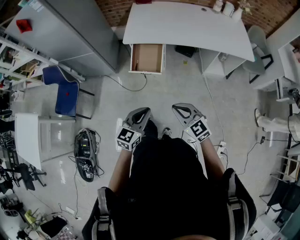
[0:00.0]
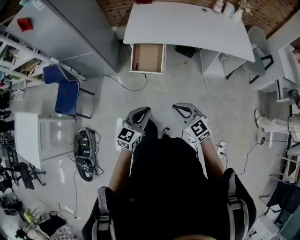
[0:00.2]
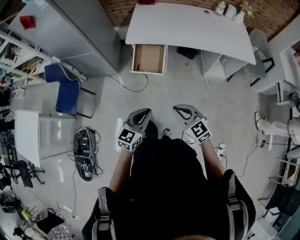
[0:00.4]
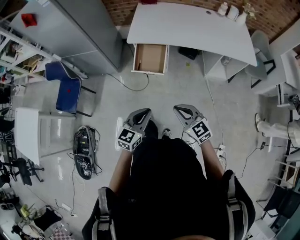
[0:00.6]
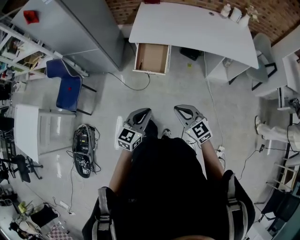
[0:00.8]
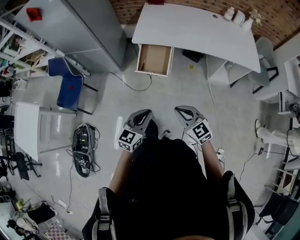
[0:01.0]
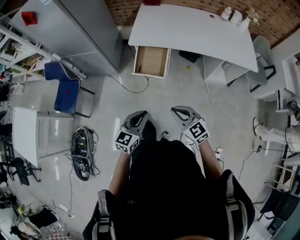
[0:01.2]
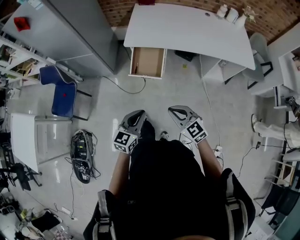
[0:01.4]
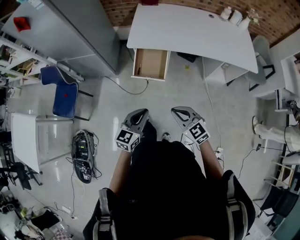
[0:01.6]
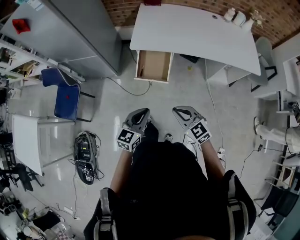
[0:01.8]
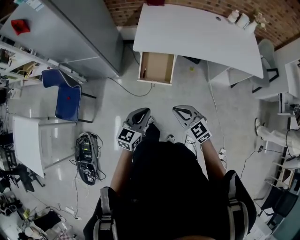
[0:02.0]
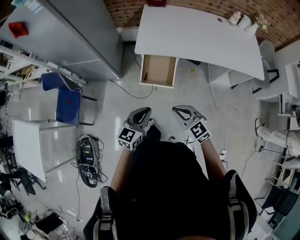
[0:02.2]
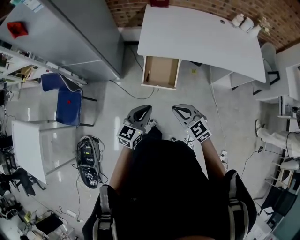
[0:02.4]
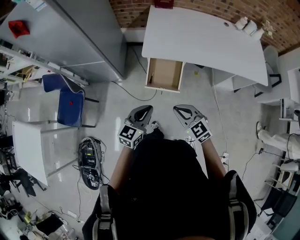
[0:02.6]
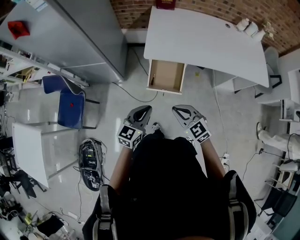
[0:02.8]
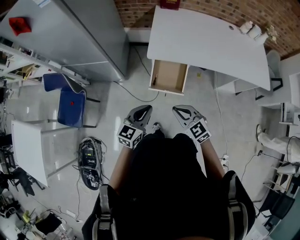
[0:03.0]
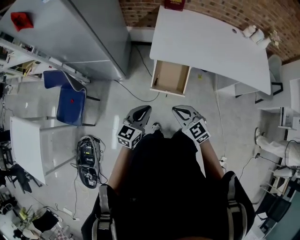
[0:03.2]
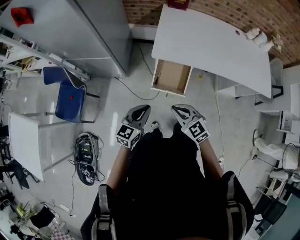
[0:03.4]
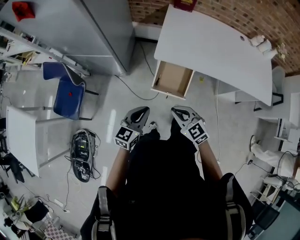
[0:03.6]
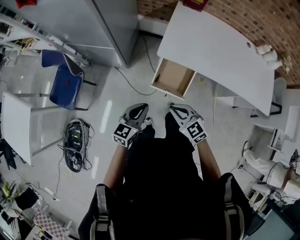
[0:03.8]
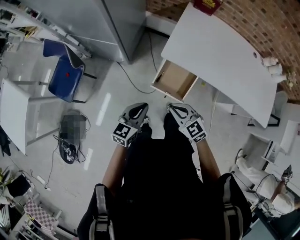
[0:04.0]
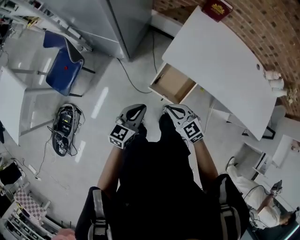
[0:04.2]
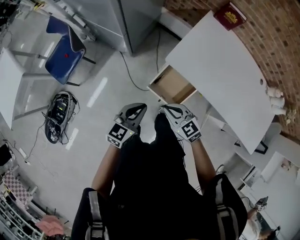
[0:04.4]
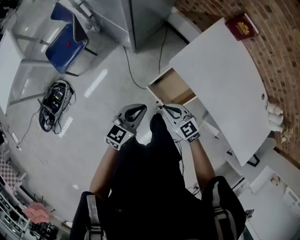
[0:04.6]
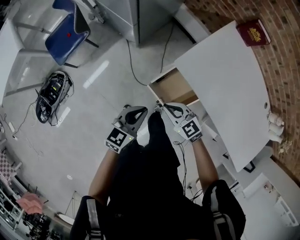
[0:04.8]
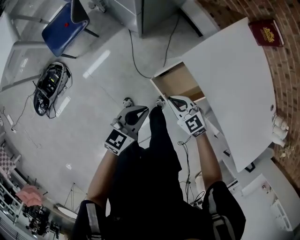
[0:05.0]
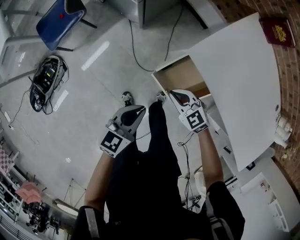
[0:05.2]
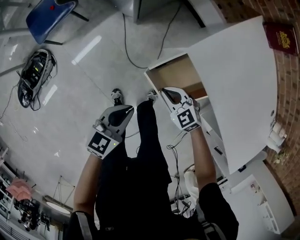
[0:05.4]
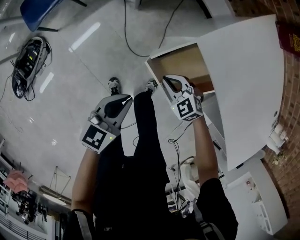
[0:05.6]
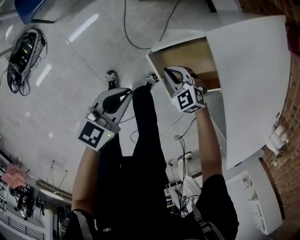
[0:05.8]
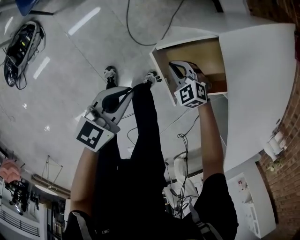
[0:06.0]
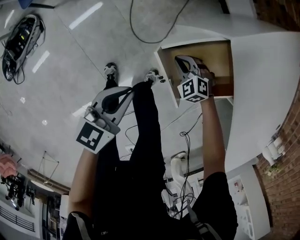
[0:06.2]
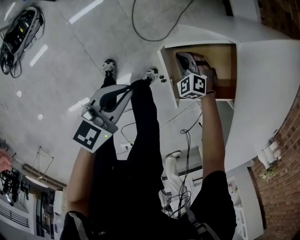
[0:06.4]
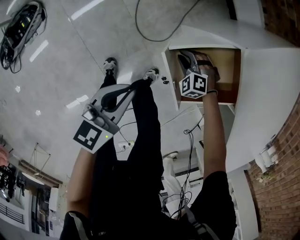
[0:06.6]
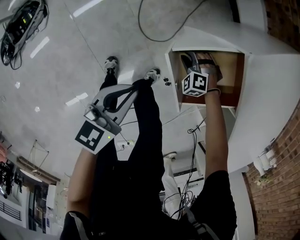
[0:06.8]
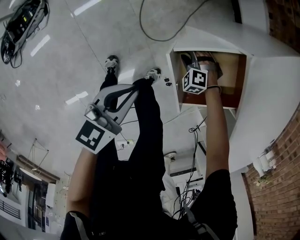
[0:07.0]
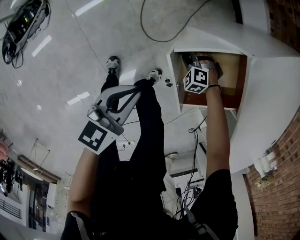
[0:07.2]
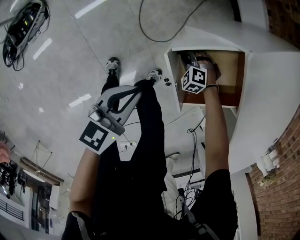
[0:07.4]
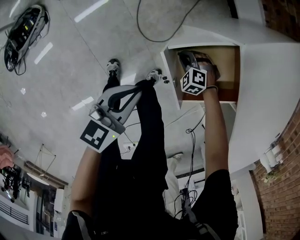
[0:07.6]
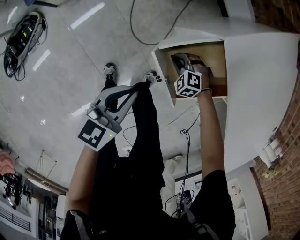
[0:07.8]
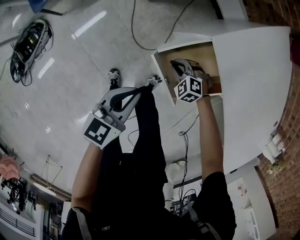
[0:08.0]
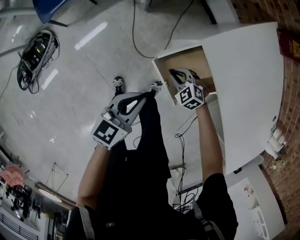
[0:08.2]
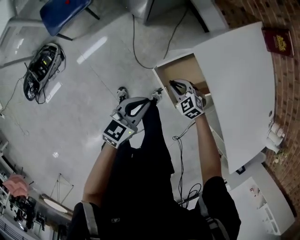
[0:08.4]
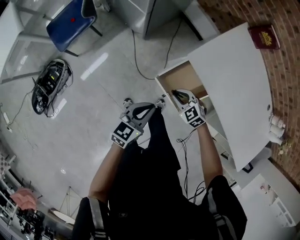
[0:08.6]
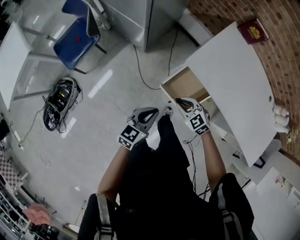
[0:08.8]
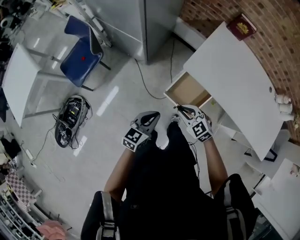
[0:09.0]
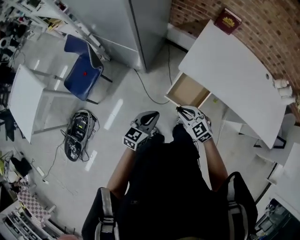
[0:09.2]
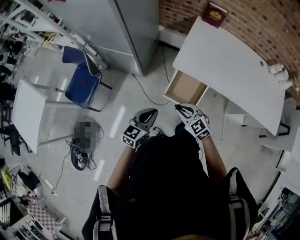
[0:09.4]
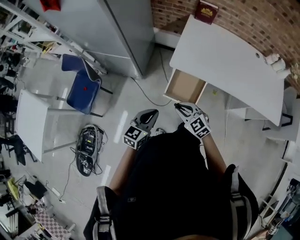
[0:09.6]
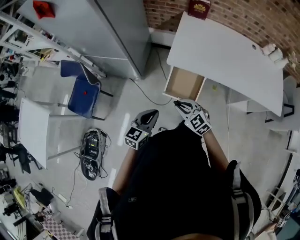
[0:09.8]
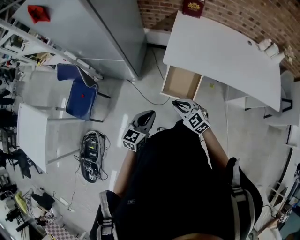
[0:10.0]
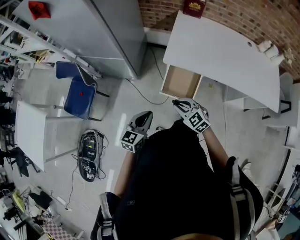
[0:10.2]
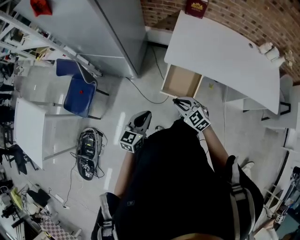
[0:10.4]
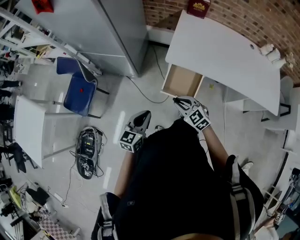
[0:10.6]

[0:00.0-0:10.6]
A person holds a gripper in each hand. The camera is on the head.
0:00.0 to 0:01.6: Both grippers move forward, roughly 5 cm.
0:01.6 to 0:03.0: Both grippers move forward and to the left, approximately 20 cm.
0:03.0 to 0:04.6: The left gripper changes place by roughly 10 cm, and turns by approximately 30 degrees; the right gripper changes place by about 20 cm, and swivels some 40 degrees.
0:04.6 to 0:06.0: The right gripper is displaced downward by approximately 35 cm, and changes its angle by roughly 40 degrees, while the left gripper heads downward, covering some 20 cm, and turns by about 20 degrees.
0:06.0 to 0:07.6: The right gripper travels downward by some 10 cm, and changes its angle by some 30 degrees.
0:07.6 to 0:09.0: The left gripper moves upward, roughly 20 cm, and turns by some 30 degrees, while the right gripper is displaced upward by some 40 cm, and rotates around the line of its fingers by some 50 degrees, clockwise from behind.
0:09.0 to 0:10.6: The left gripper moves approximately 5 cm, while the right gripper ends up some 5 cm from where it was.

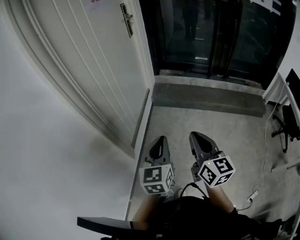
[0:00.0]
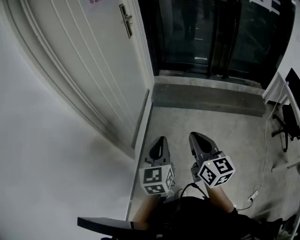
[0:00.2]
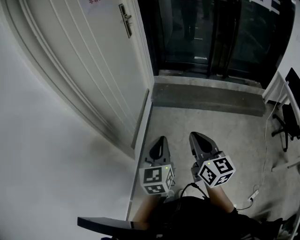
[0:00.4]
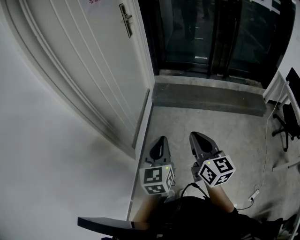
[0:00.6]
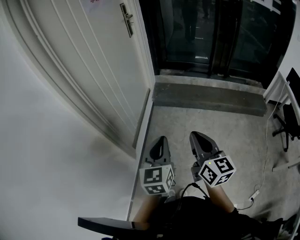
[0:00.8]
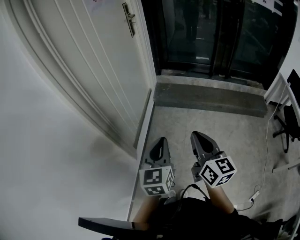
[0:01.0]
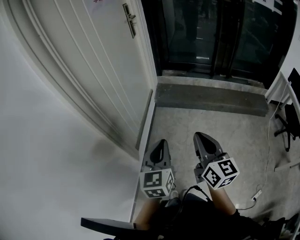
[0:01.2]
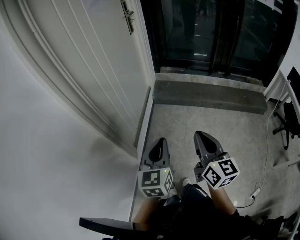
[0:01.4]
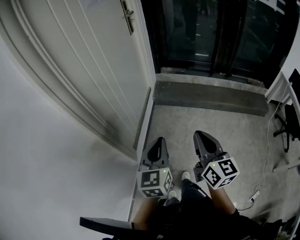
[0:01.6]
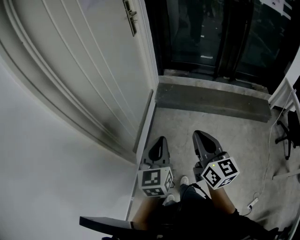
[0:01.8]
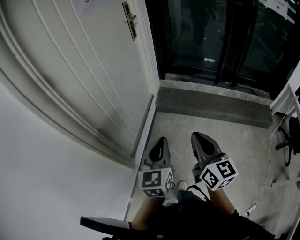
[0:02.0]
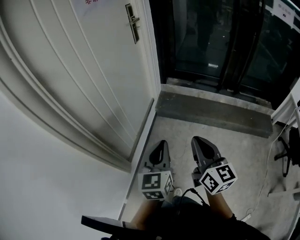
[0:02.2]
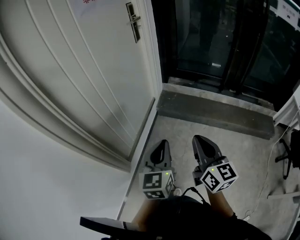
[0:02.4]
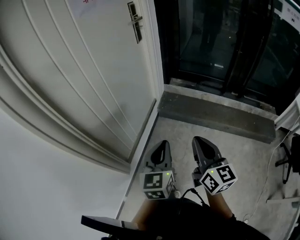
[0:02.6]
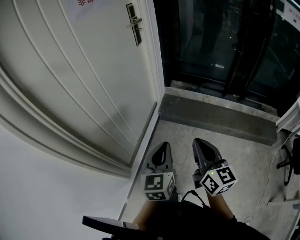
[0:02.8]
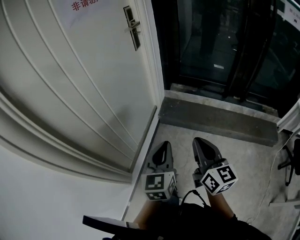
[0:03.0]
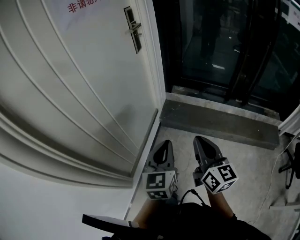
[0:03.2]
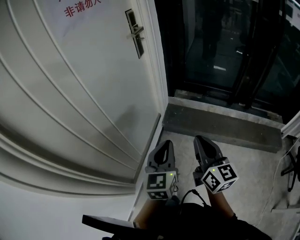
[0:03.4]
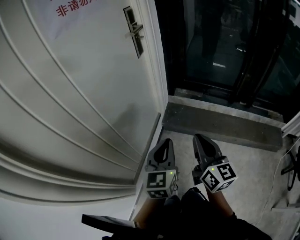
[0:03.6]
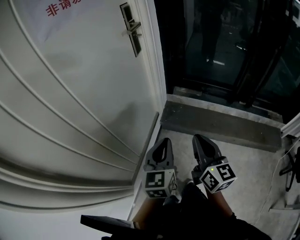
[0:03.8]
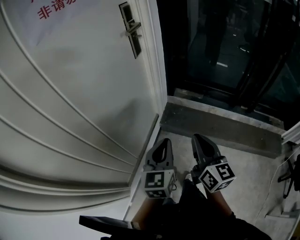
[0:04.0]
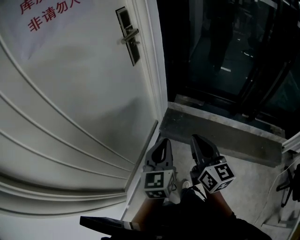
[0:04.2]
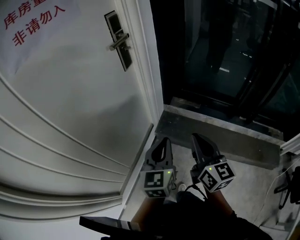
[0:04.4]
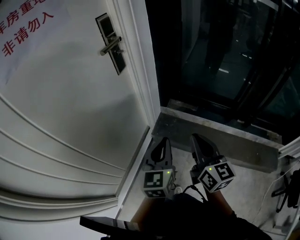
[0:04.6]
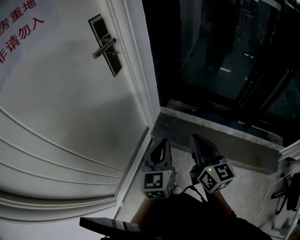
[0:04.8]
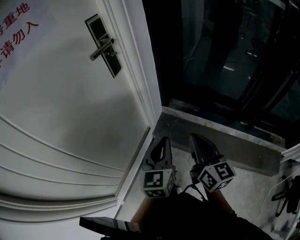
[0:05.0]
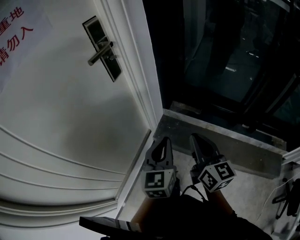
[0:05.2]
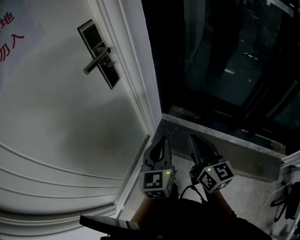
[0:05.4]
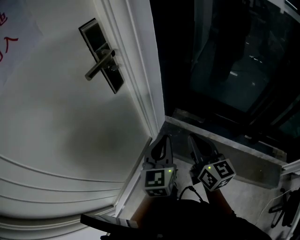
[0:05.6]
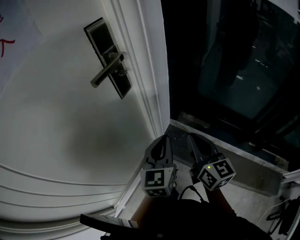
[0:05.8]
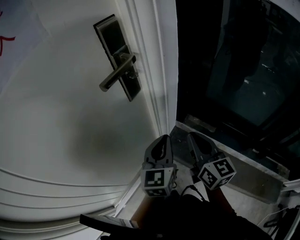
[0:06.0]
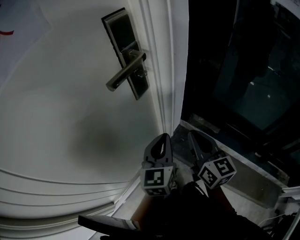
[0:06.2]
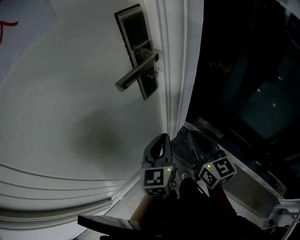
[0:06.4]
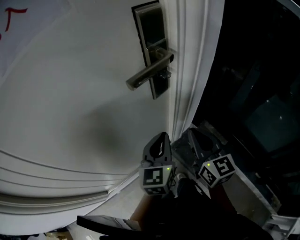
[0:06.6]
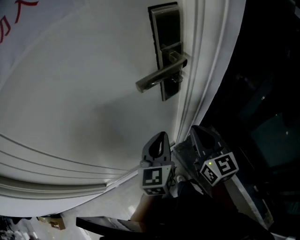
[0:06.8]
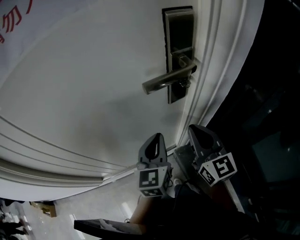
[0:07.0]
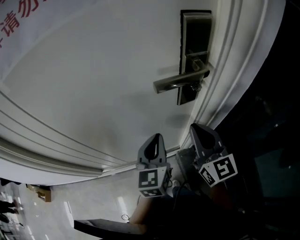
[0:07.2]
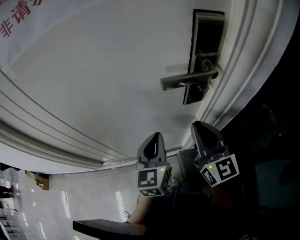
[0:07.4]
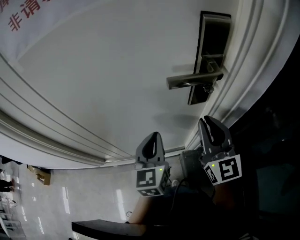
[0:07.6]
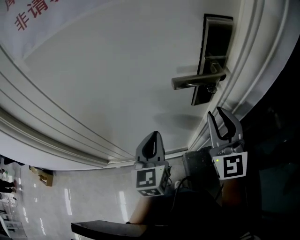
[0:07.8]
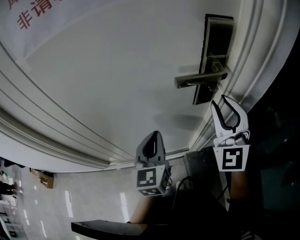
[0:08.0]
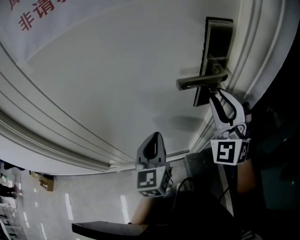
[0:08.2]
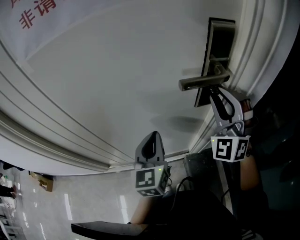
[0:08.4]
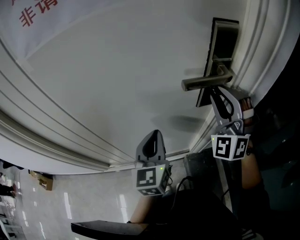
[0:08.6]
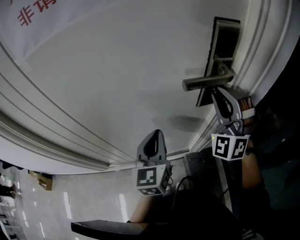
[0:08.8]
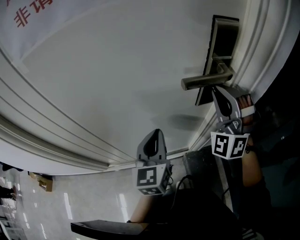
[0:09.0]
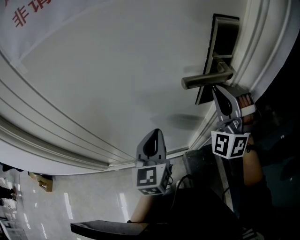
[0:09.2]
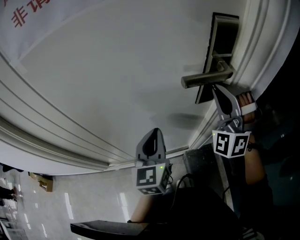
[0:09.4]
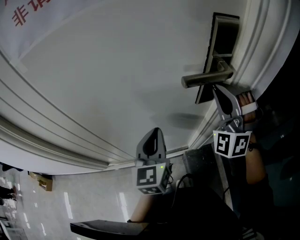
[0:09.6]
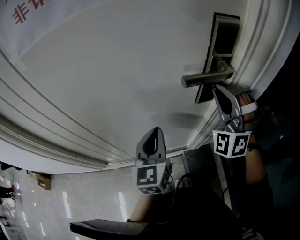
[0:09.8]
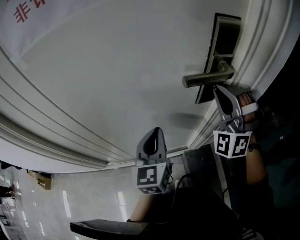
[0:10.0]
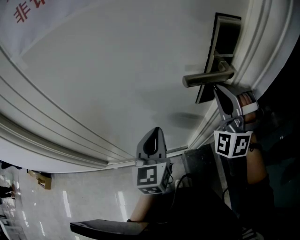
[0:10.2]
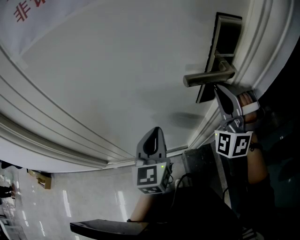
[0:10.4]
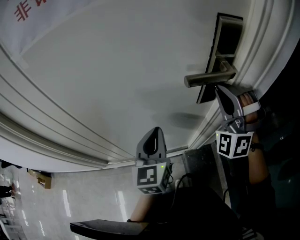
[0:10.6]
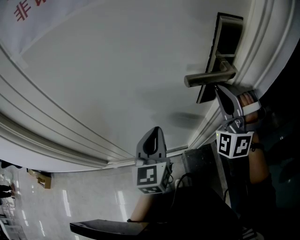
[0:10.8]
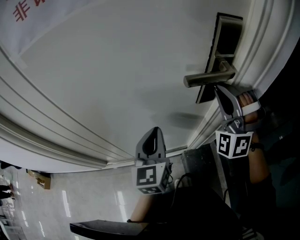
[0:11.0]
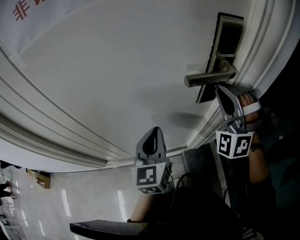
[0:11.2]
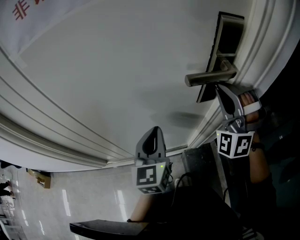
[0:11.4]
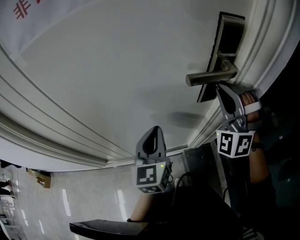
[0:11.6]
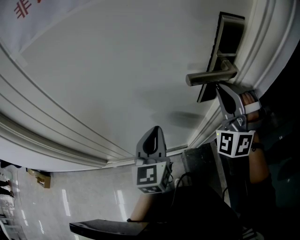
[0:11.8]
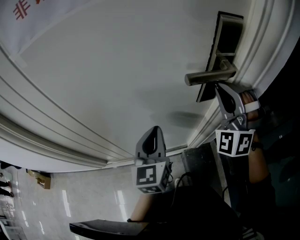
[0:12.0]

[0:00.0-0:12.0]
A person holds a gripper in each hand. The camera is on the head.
0:00.0 to 0:01.6: The grippers move only a little.
0:01.6 to 0:03.0: The left gripper goes about 25 cm forward and to the right, while the right gripper is displaced forward by about 25 cm.
0:03.0 to 0:04.4: The grippers both shift forward by roughly 30 cm.
0:04.4 to 0:06.0: Both grippers travel together forward, about 30 cm.
0:06.0 to 0:07.6: The right gripper changes place by about 20 cm, and changes its angle by some 50 degrees, while the left gripper shifts by about 15 cm, and changes its angle by about 50 degrees.
0:07.6 to 0:09.0: The right gripper heads forward and upward, covering approximately 10 cm, and rotates around the line of its fingers by about 70 degrees, counterclockwise from behind.
0:09.0 to 0:10.4: There are only small adjustments of the grippers.
0:10.4 to 0:12.0: Both grippers stay put.

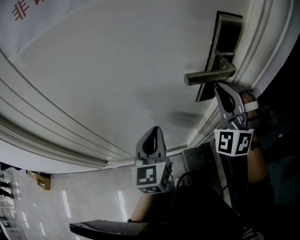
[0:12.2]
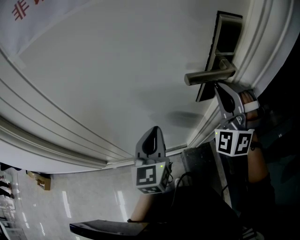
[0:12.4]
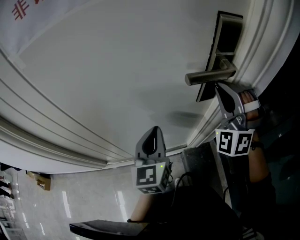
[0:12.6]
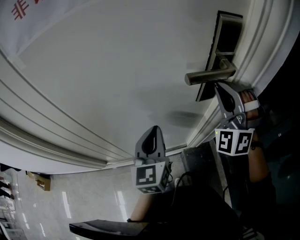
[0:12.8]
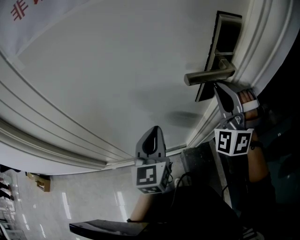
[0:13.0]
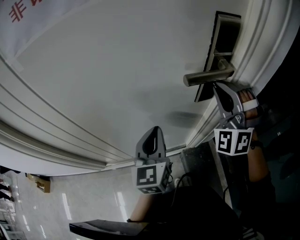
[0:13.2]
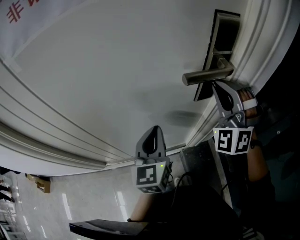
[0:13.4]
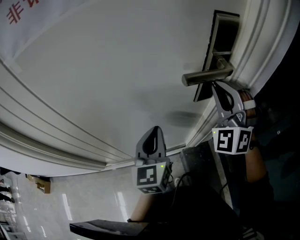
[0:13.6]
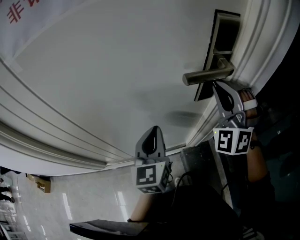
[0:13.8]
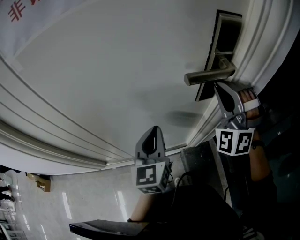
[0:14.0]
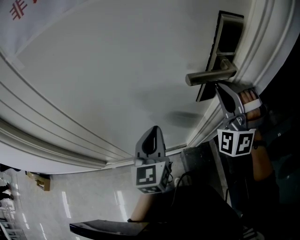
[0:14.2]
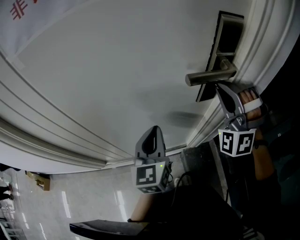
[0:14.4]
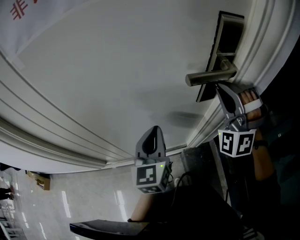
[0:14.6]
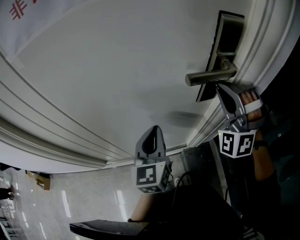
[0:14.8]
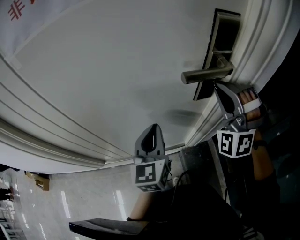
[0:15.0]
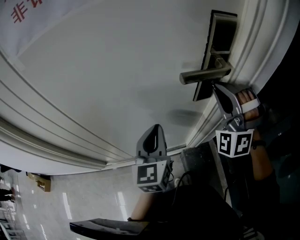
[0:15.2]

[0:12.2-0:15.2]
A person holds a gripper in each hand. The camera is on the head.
0:12.2 to 0:15.2: There are only small adjustments of the grippers.
